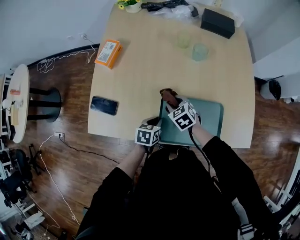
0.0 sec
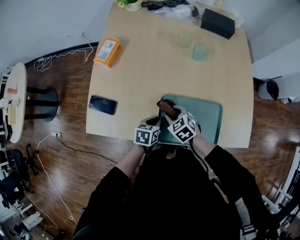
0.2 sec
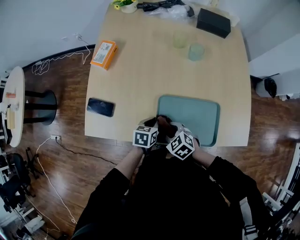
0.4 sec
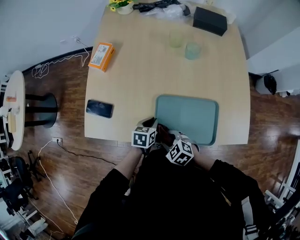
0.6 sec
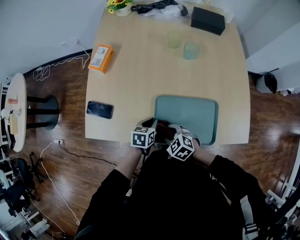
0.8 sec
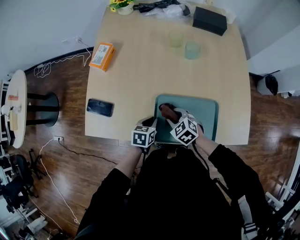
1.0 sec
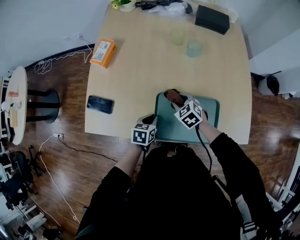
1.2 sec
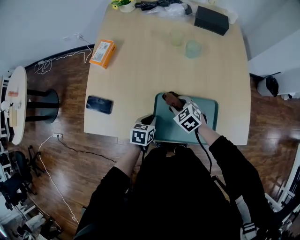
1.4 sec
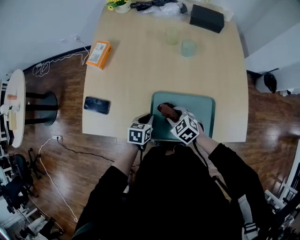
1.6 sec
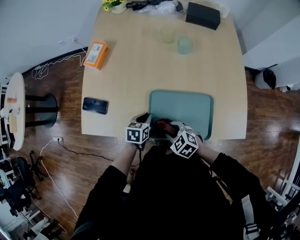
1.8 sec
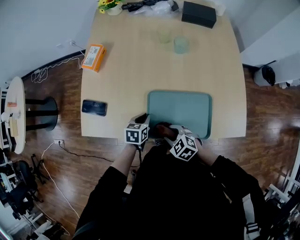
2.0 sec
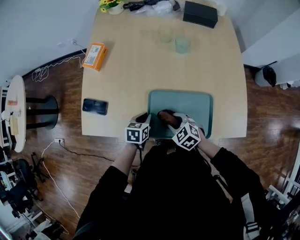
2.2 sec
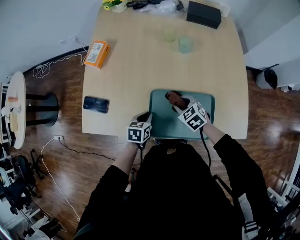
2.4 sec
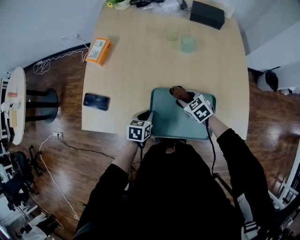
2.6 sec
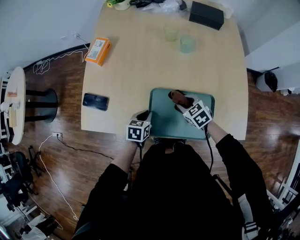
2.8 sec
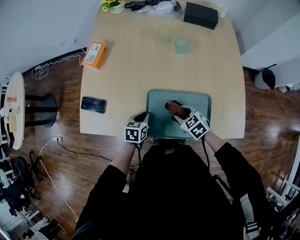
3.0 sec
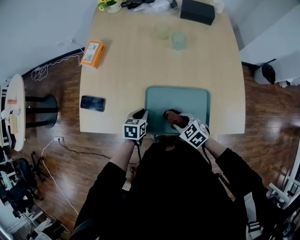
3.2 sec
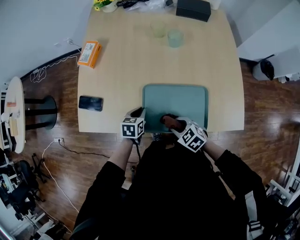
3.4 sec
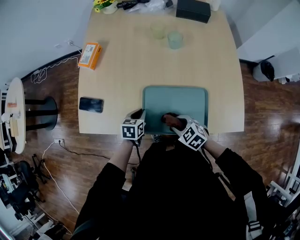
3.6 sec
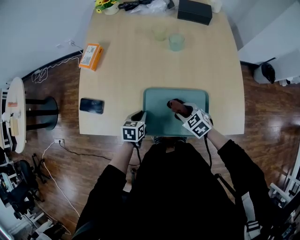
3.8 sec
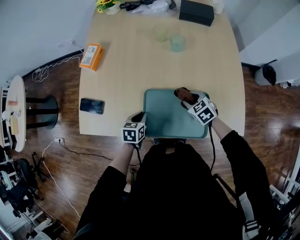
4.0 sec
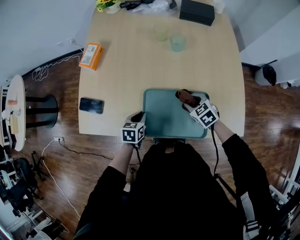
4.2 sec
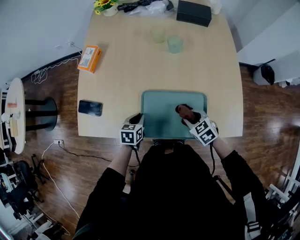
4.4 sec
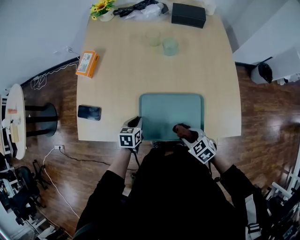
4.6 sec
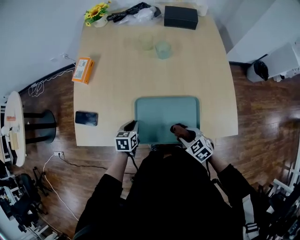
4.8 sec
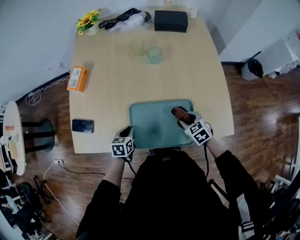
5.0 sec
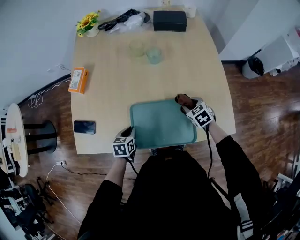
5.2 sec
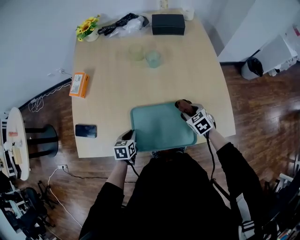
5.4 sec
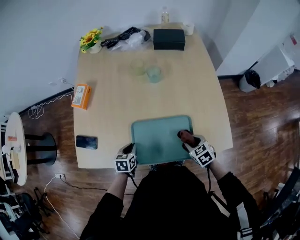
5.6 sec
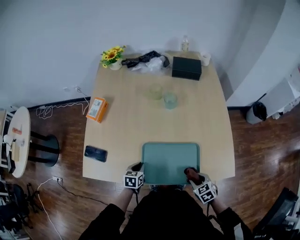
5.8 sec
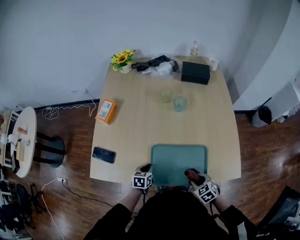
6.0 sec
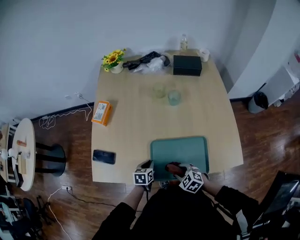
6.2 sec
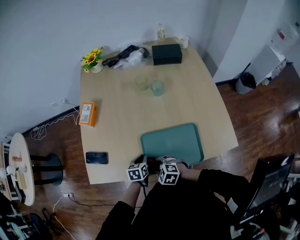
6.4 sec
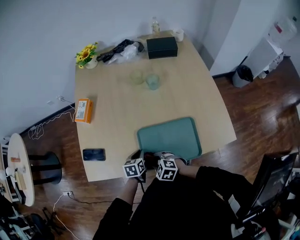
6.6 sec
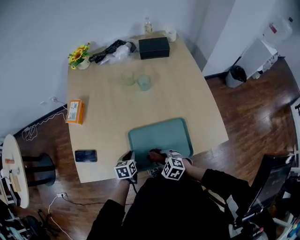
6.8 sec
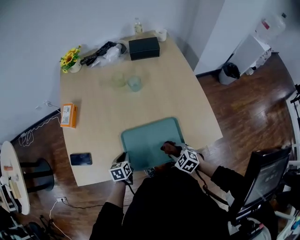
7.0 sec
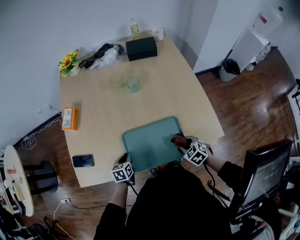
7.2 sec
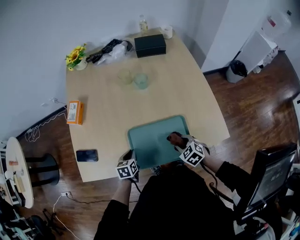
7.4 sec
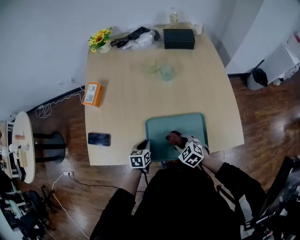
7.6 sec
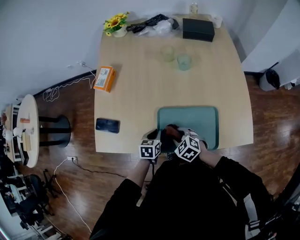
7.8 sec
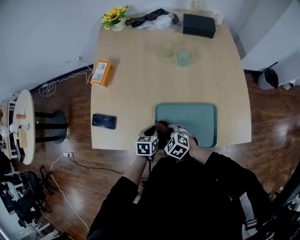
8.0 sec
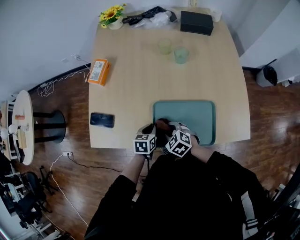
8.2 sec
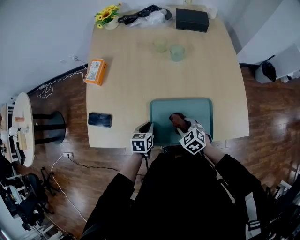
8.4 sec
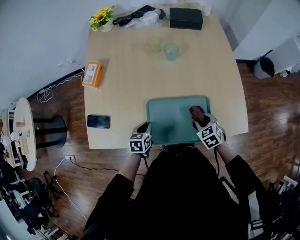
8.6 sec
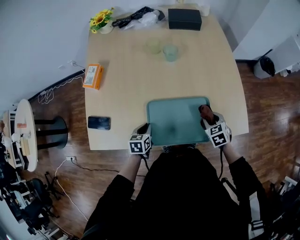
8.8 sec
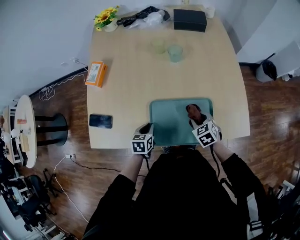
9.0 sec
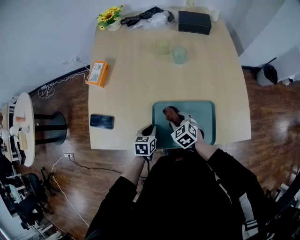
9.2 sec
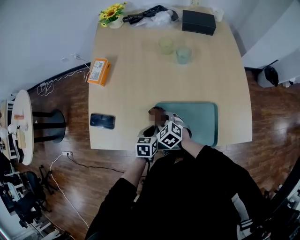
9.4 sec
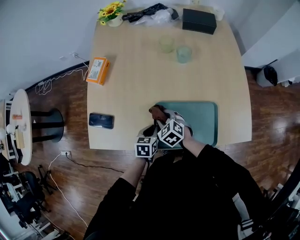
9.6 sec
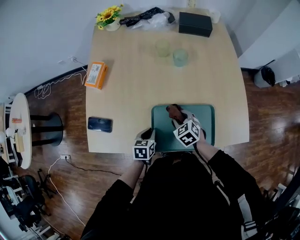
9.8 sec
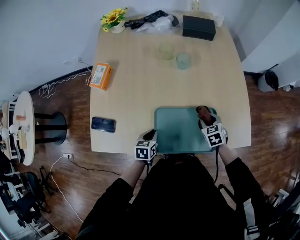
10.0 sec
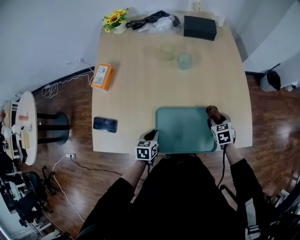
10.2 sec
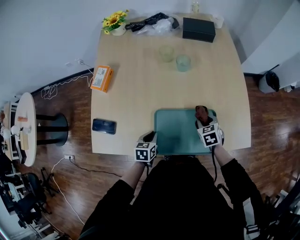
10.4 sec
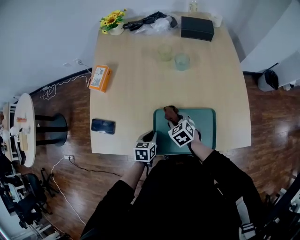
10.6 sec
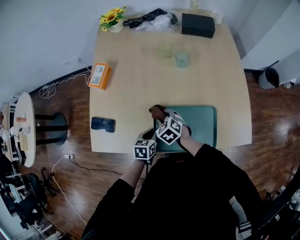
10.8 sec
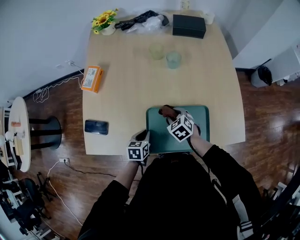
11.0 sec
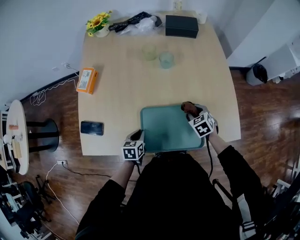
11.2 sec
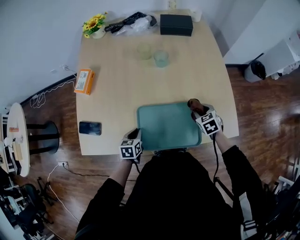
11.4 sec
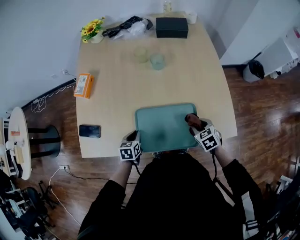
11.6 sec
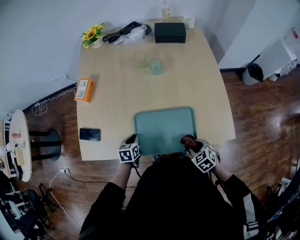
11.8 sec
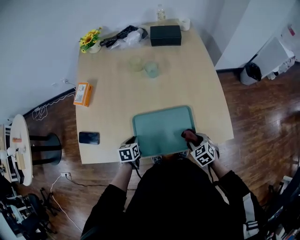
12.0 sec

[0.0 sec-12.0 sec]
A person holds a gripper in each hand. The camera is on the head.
0.0 sec to 1.6 sec: The right gripper goes forward and backward, some 20 cm each way, reversing 2 times.
1.6 sec to 3.0 sec: The right gripper swings forward and backward, roughly 15 cm each way, with 2 reversals.
3.0 sec to 4.4 sec: The right gripper moves forward and backward over approximately 15 cm, changing direction 2 times.
4.4 sec to 6.0 sec: The right gripper moves forward and backward over some 20 cm, changing direction 2 times.
6.0 sec to 7.6 sec: The right gripper swings left and right, some 25 cm each way, with 2 reversals.
7.6 sec to 9.0 sec: The right gripper goes left and right, some 30 cm each way, reversing 2 times.
9.0 sec to 10.4 sec: The right gripper swings left and right, about 30 cm each way, with 2 reversals.
10.4 sec to 12.0 sec: The right gripper moves backward, approximately 15 cm, and moves about 20 cm to the left and comes back.

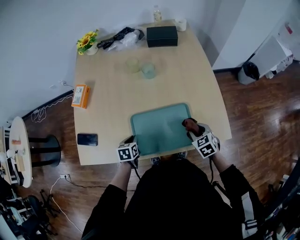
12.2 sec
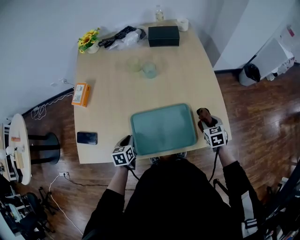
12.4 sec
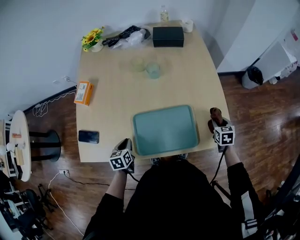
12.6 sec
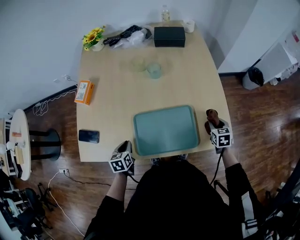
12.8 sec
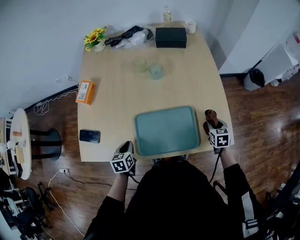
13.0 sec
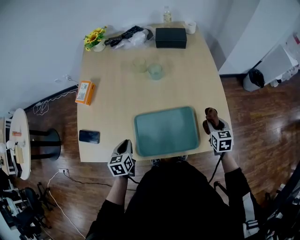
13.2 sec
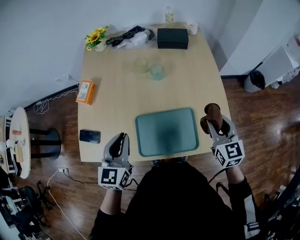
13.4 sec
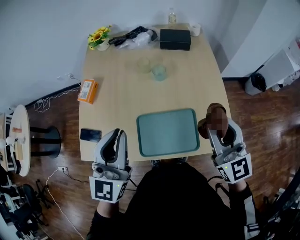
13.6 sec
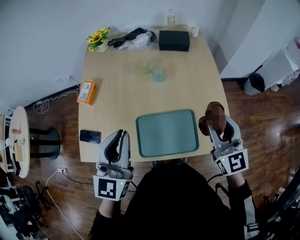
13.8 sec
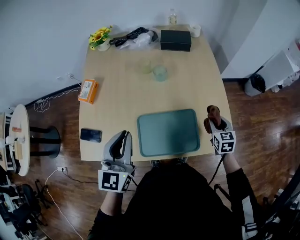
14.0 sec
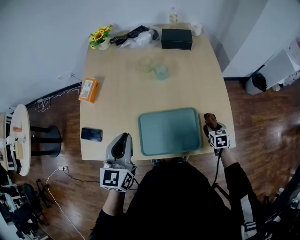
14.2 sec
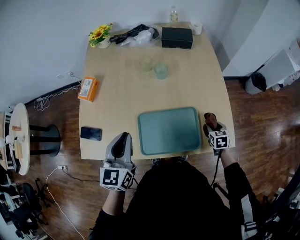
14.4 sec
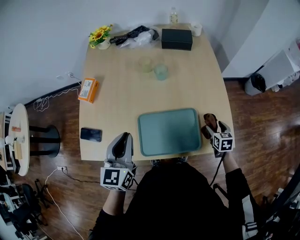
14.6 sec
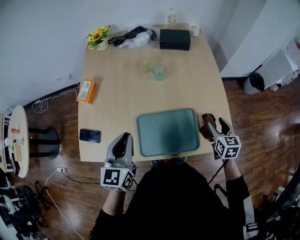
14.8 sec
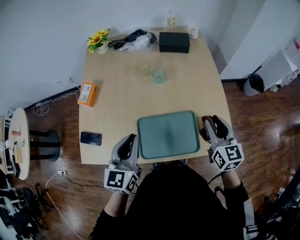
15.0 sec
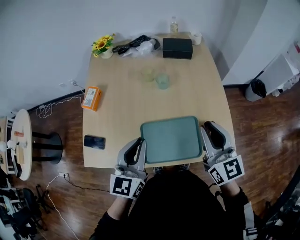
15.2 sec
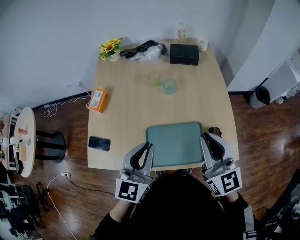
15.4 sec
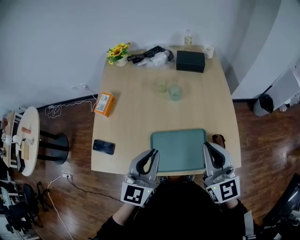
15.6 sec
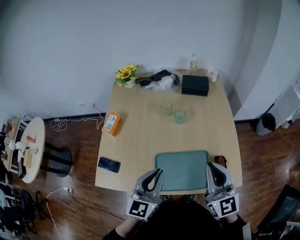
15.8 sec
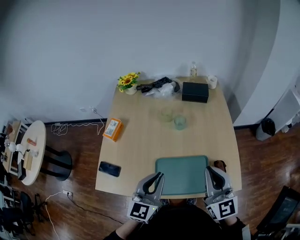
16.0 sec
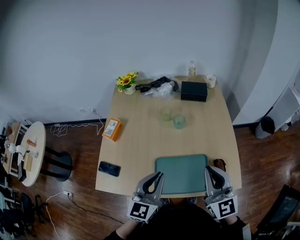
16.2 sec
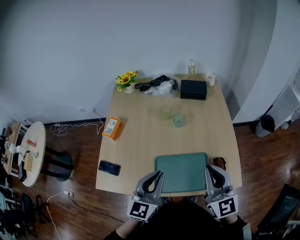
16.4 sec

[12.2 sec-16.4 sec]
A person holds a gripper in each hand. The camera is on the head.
12.2 sec to 13.6 sec: The grippers both shift upward by about 35 cm. The left gripper tilts its fingers about 60 degrees upward, while the right gripper angles its fingers upward, by roughly 50 degrees.
13.6 sec to 15.0 sec: The left gripper moves downward, roughly 10 cm, and turns by about 20 degrees. The right gripper reaches roughly 35 cm downward, then returns, rotates approximately 20 degrees, and opens, then closes again.
15.0 sec to 16.4 sec: The right gripper travels upward and to the left by roughly 15 cm, rotates approximately 20 degrees, and closes, while the left gripper changes place by roughly 5 cm.

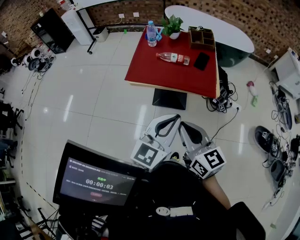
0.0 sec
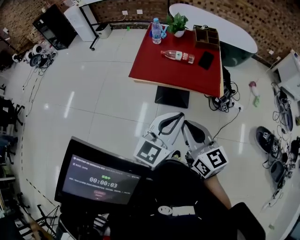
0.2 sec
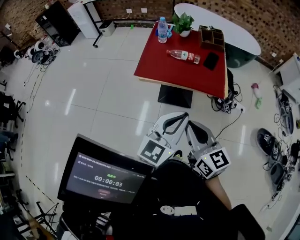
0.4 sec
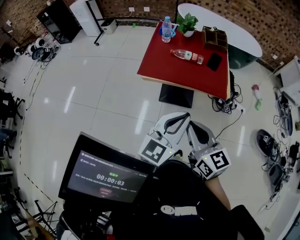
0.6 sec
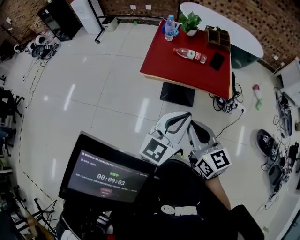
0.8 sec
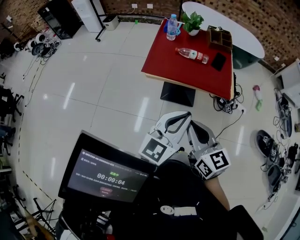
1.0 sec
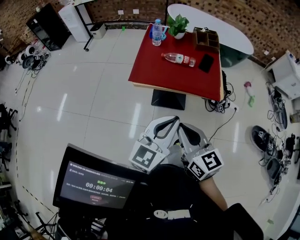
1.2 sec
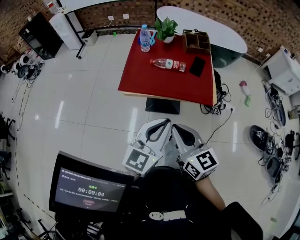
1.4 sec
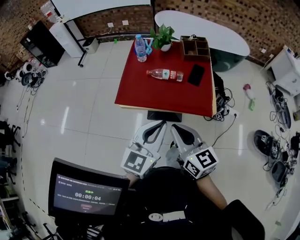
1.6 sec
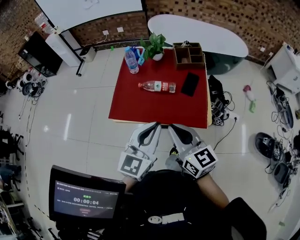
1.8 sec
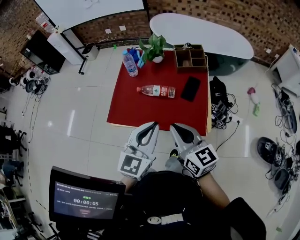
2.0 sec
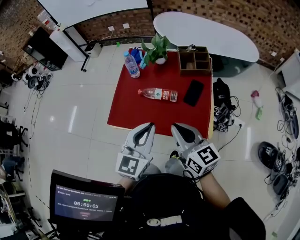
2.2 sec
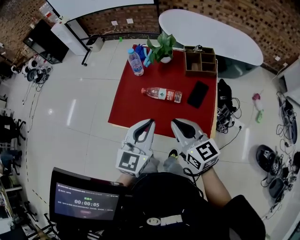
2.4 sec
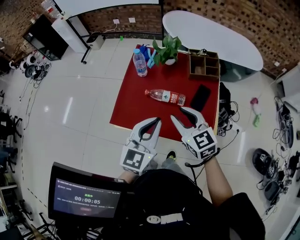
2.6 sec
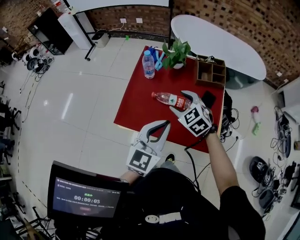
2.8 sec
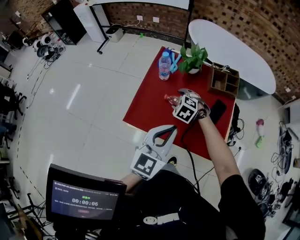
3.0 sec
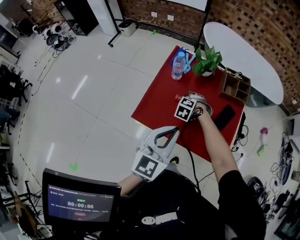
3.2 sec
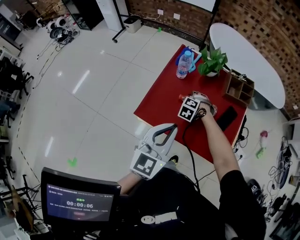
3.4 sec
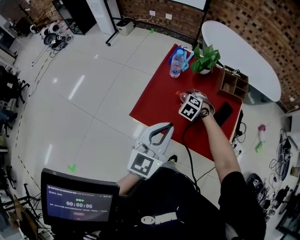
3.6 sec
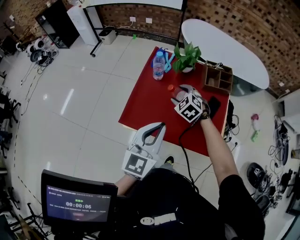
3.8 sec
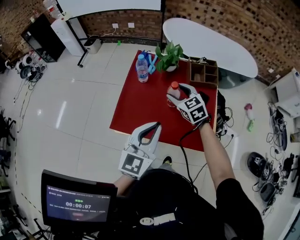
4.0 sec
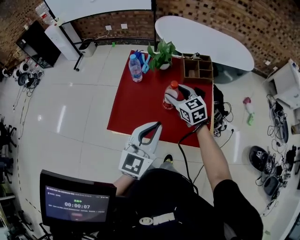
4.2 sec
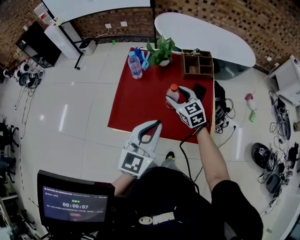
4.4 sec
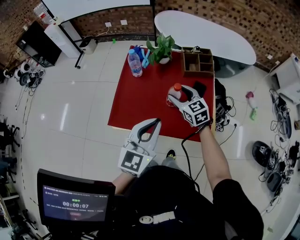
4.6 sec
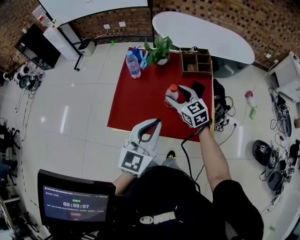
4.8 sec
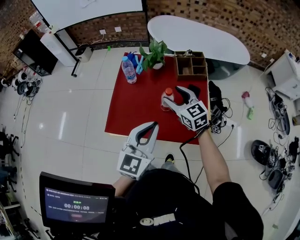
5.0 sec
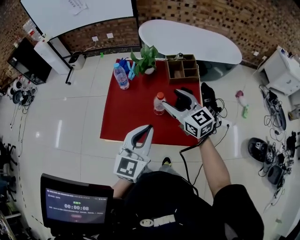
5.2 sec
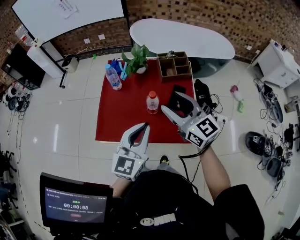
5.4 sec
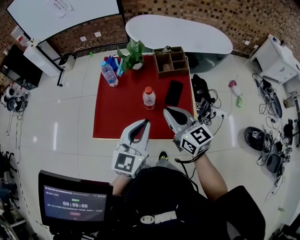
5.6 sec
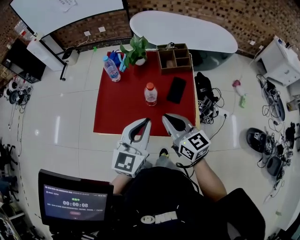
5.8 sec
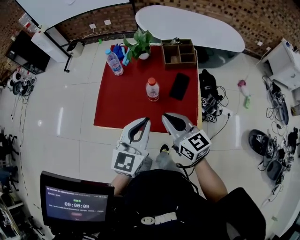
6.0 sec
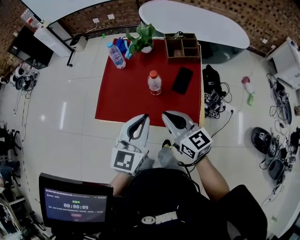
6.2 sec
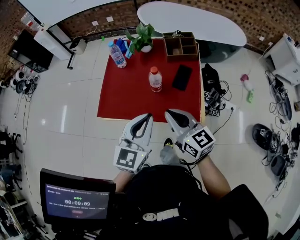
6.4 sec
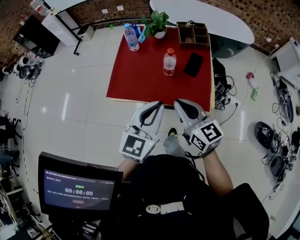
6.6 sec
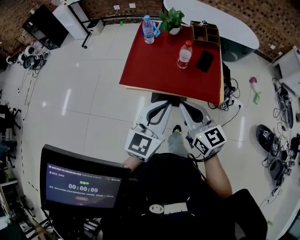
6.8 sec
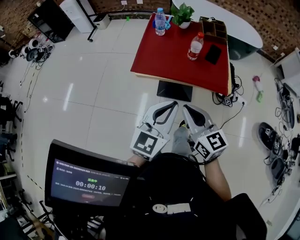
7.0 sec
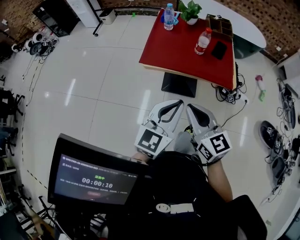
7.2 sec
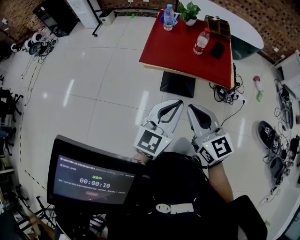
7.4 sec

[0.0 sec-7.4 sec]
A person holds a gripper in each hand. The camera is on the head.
0.0 sec to 1.4 sec: Both grippers move forward, roughly 5 cm.
1.4 sec to 3.0 sec: The left gripper travels forward by roughly 25 cm. The right gripper heads forward and downward, covering some 50 cm, tilts its fingers some 50 degrees downward, and opens.
3.0 sec to 4.4 sec: The right gripper is displaced to the right and upward by about 15 cm, and angles its fingers upward, by about 30 degrees; the left gripper goes to the left and returns, some 5 cm each way.
4.4 sec to 6.0 sec: The right gripper travels backward and upward by approximately 20 cm, swivels about 20 degrees, and closes its fingers. Meanwhile the left gripper heads to the right, covering roughly 5 cm.
6.0 sec to 7.4 sec: Both grippers travel together backward and to the left, roughly 35 cm.
